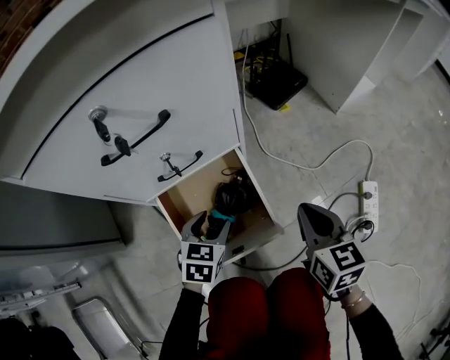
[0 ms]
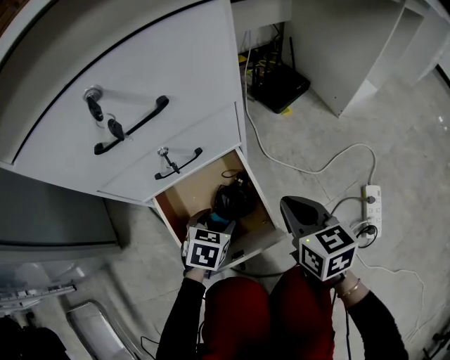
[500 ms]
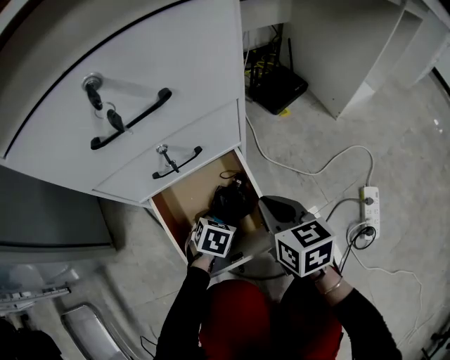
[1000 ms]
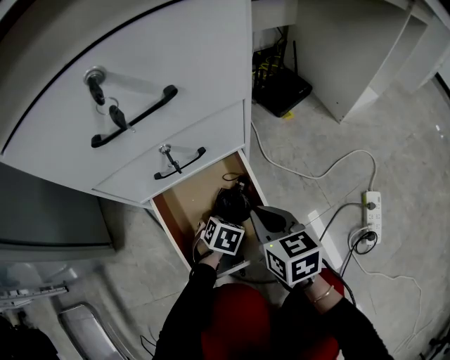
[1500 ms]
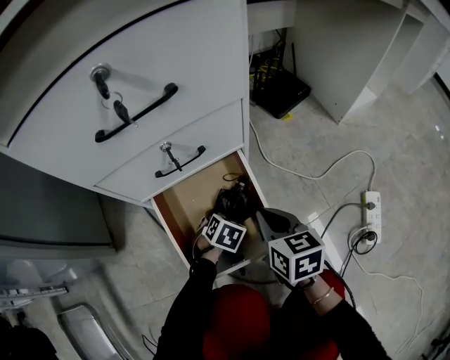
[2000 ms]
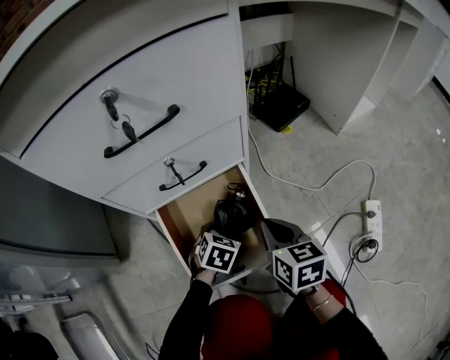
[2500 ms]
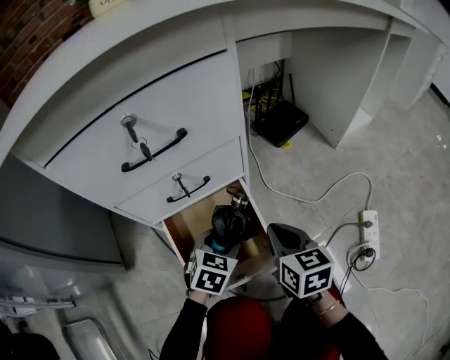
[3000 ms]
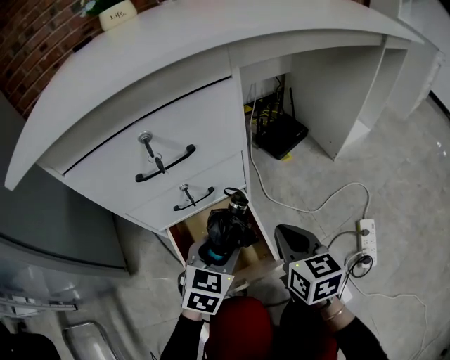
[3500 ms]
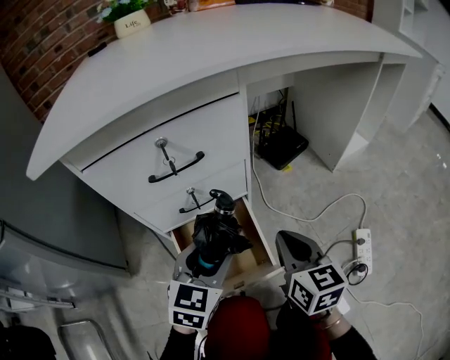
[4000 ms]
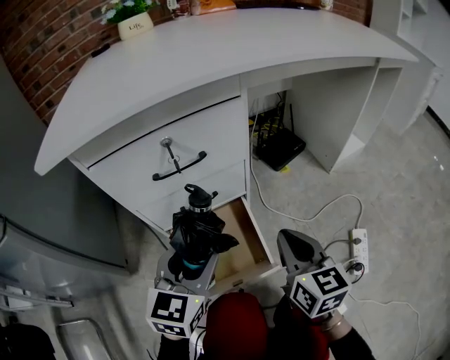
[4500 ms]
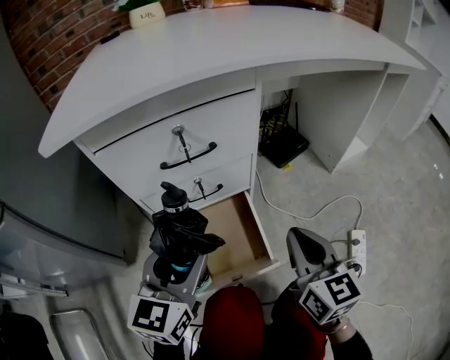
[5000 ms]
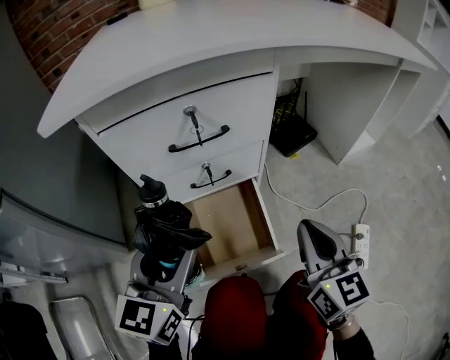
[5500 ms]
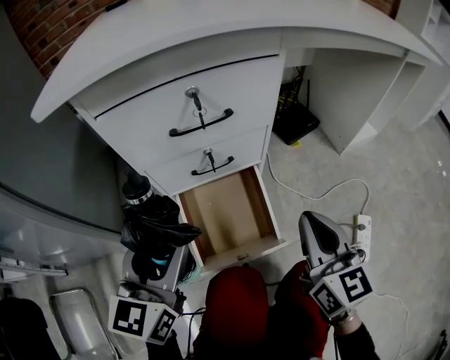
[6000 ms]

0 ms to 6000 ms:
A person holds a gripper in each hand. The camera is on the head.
0 ms to 2000 ms: The right gripper moves to the left and downward, some 15 cm. The left gripper shifts about 15 cm downward, and turns by approximately 20 degrees.
2000 ms to 4000 ms: The left gripper is displaced upward by about 30 cm, and points its fingers some 40 degrees further upward. The right gripper moves upward, some 15 cm.
4000 ms to 6000 ms: The right gripper heads upward, covering approximately 5 cm. Meanwhile the left gripper goes roughly 15 cm to the left, upward and backward, and rotates some 20 degrees.

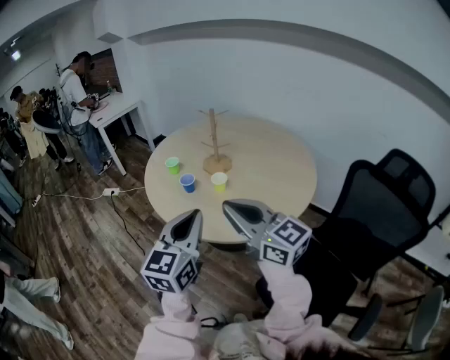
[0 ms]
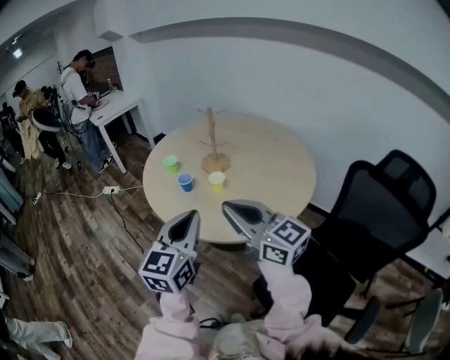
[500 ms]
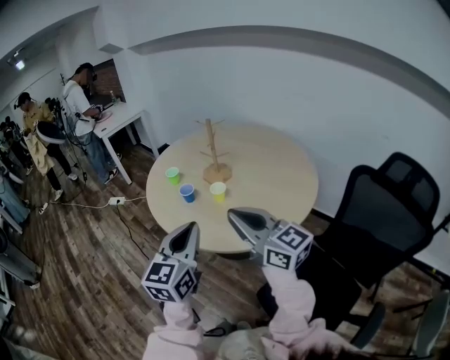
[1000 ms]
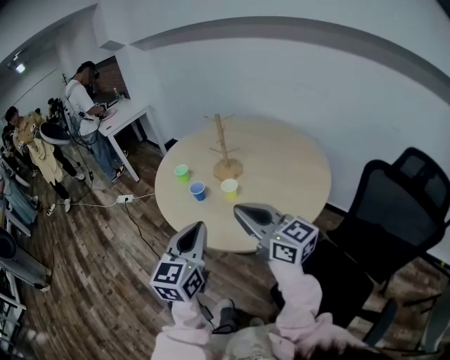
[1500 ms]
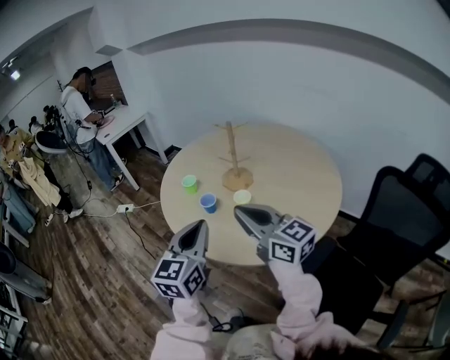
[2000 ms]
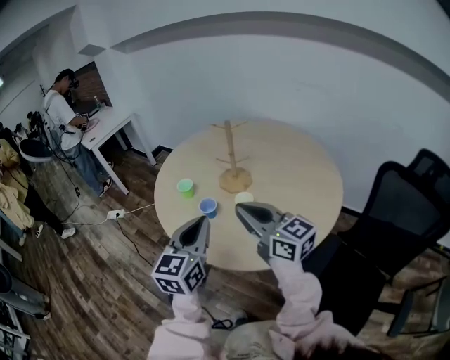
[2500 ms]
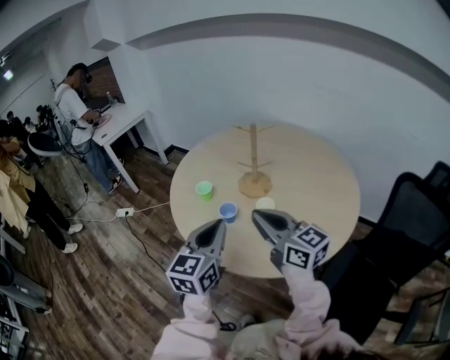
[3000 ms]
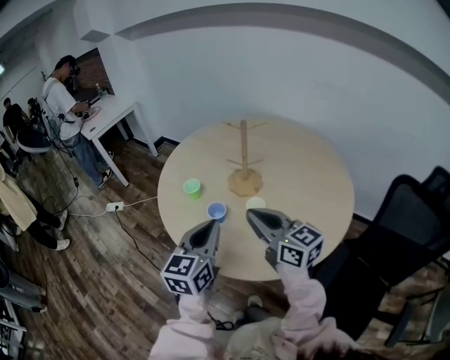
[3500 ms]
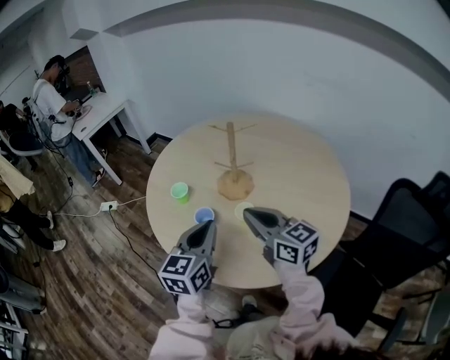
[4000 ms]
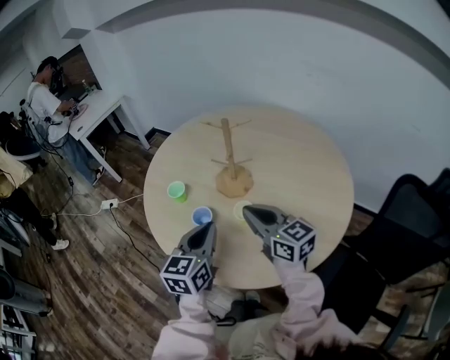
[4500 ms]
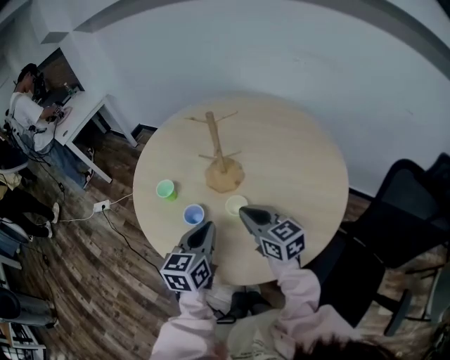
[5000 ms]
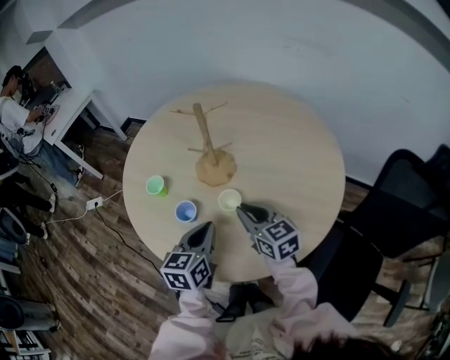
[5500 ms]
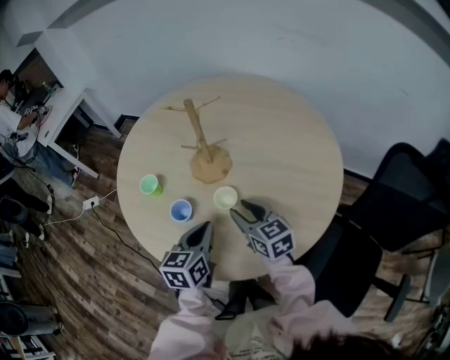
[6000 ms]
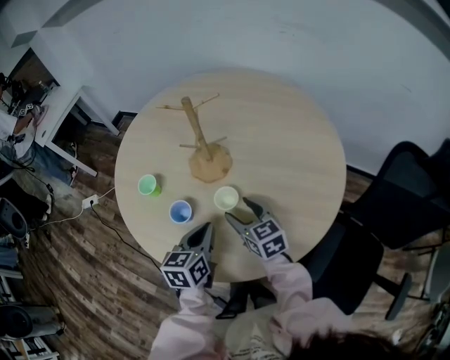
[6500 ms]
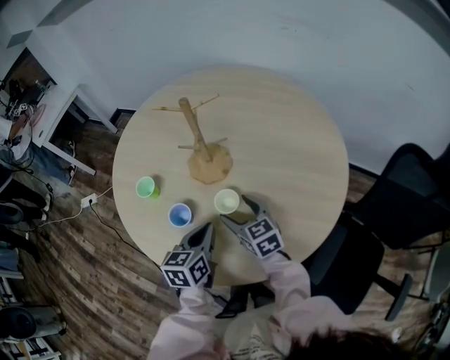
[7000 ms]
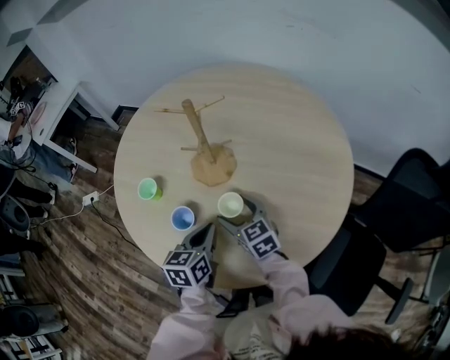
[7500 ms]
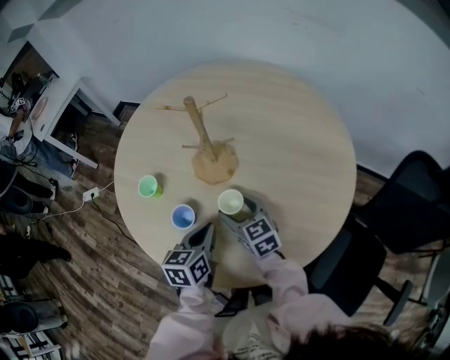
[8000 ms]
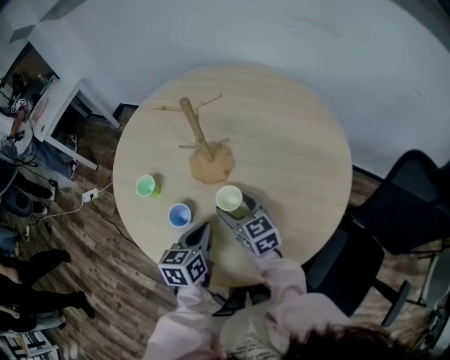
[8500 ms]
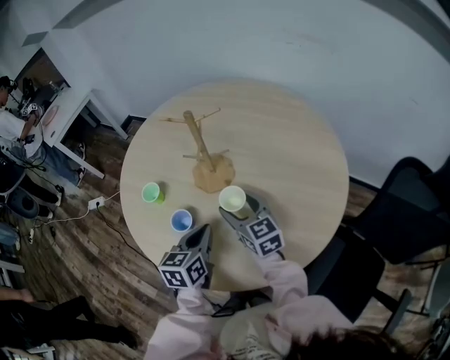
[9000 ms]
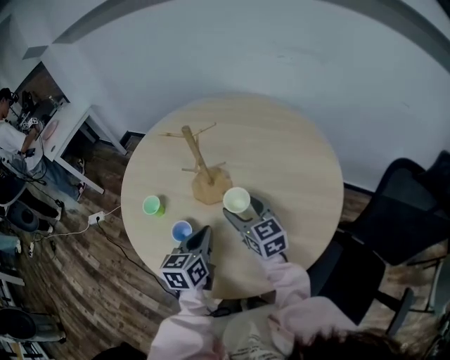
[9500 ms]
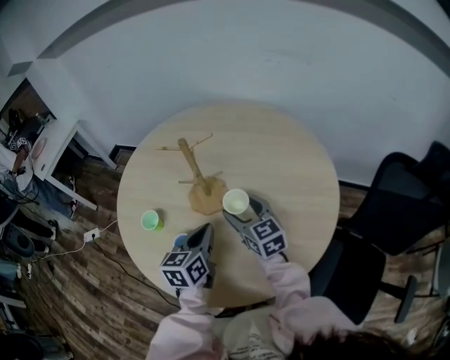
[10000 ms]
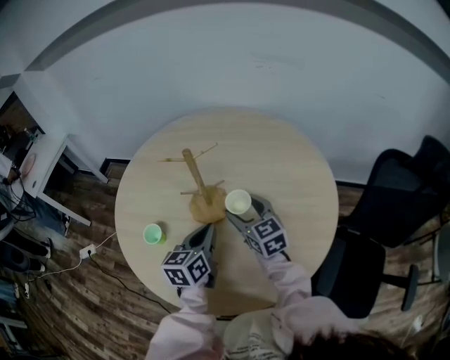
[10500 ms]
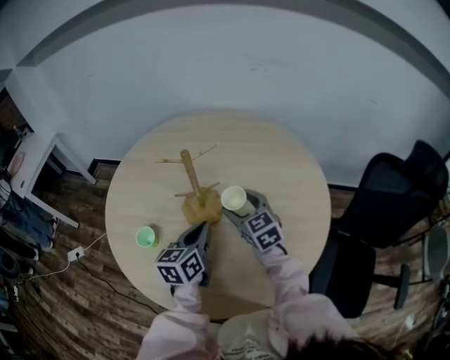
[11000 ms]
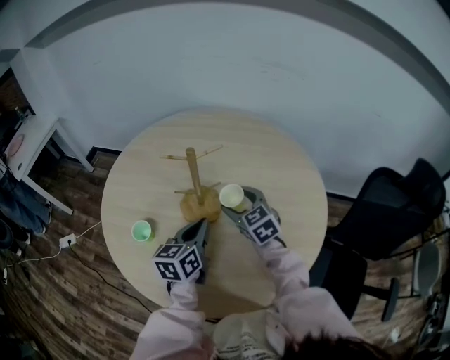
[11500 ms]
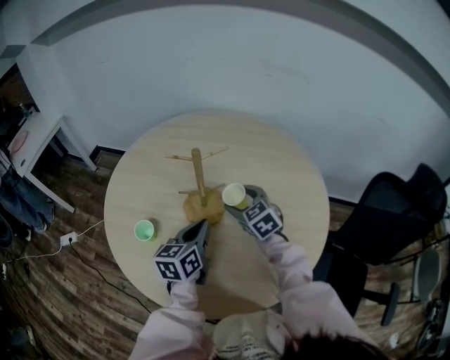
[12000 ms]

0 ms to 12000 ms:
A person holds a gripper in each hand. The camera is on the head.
0 ms to 2000 ms: The grippers both shift forward by some 10 cm.
2000 ms to 4000 ms: Both grippers move forward and downward, roughly 15 cm.
4000 ms to 6000 ms: Both grippers travel together downward, roughly 15 cm. The right gripper swivels about 20 degrees, and opens its fingers.
6000 ms to 8000 ms: The left gripper is displaced downward by approximately 5 cm. The right gripper moves about 10 cm.
8000 ms to 10000 ms: The left gripper goes roughly 10 cm upward and forward, while the right gripper travels upward, to the right and forward by roughly 10 cm.
10000 ms to 12000 ms: Both grippers travel together forward, approximately 5 cm. The right gripper turns by about 20 degrees.

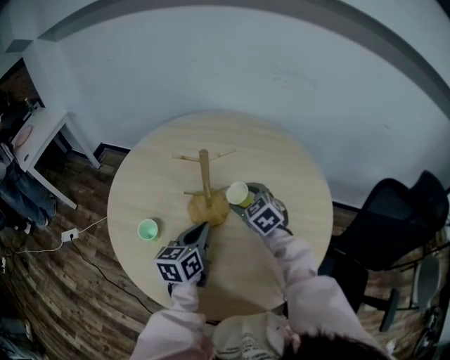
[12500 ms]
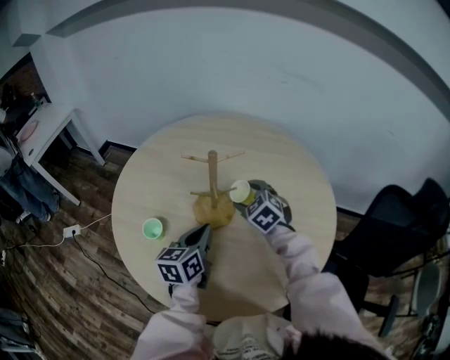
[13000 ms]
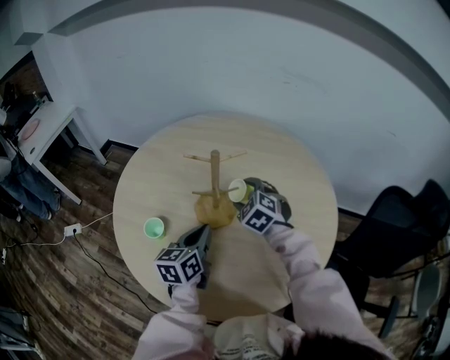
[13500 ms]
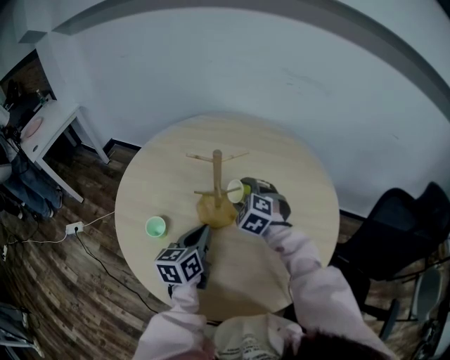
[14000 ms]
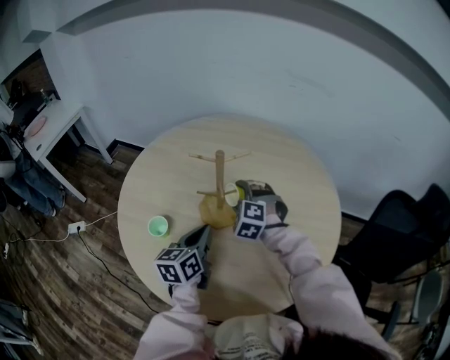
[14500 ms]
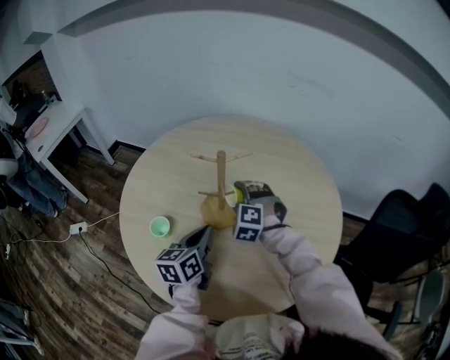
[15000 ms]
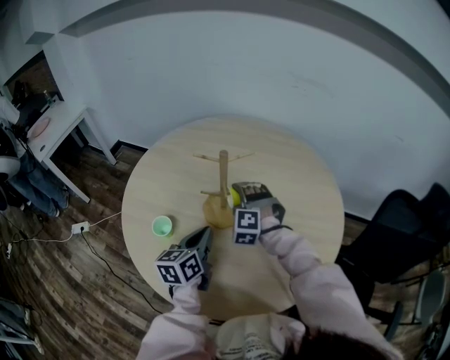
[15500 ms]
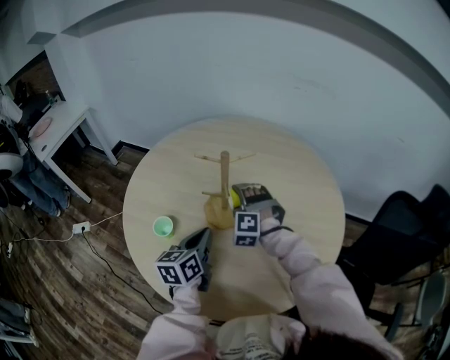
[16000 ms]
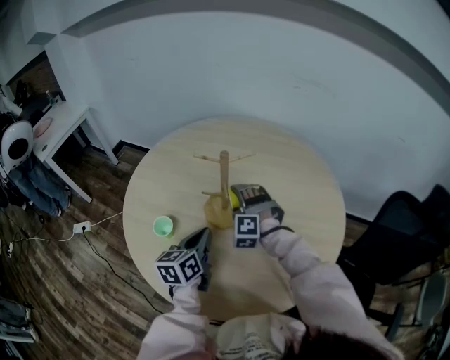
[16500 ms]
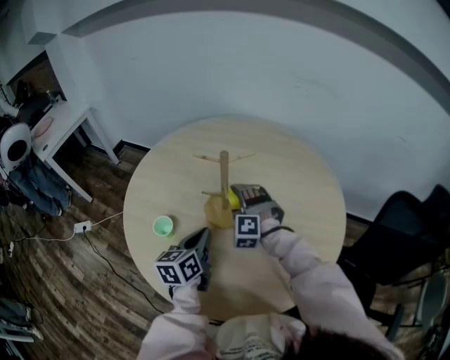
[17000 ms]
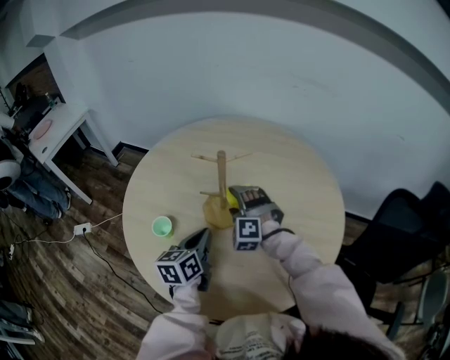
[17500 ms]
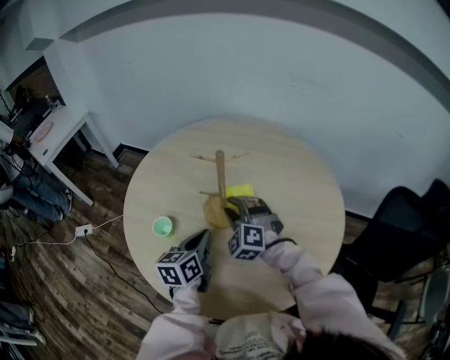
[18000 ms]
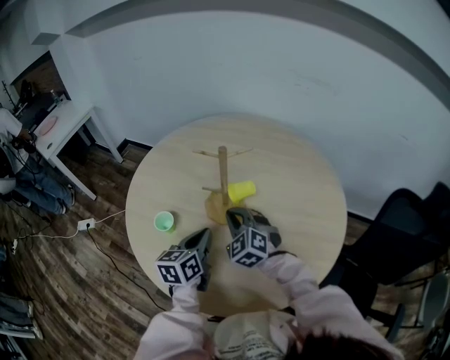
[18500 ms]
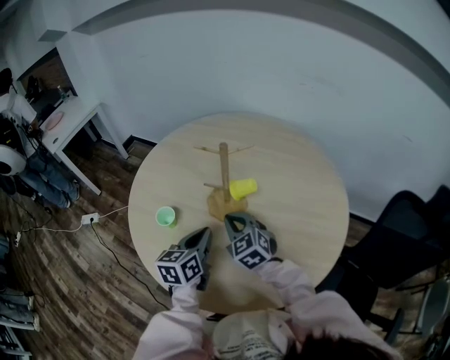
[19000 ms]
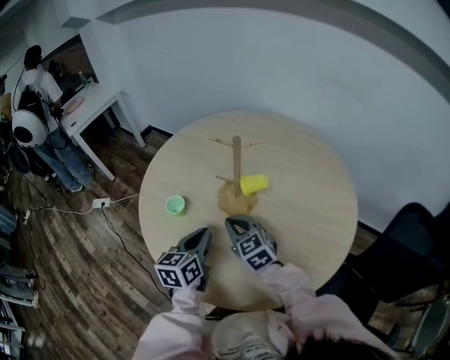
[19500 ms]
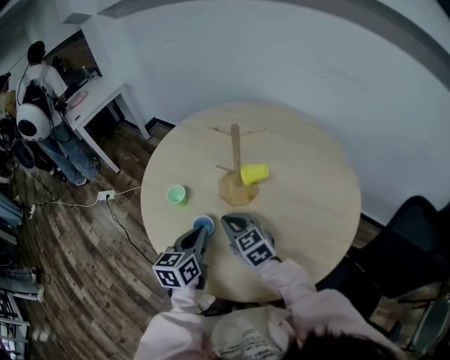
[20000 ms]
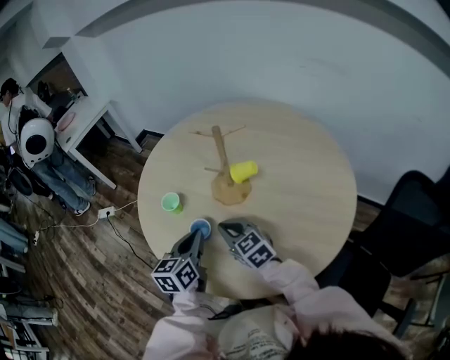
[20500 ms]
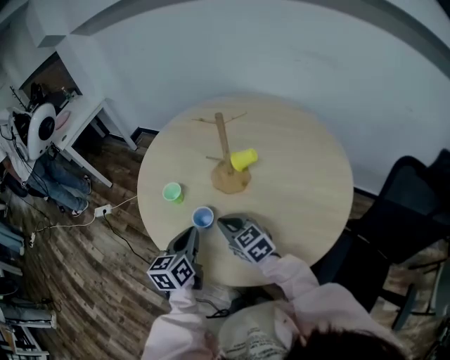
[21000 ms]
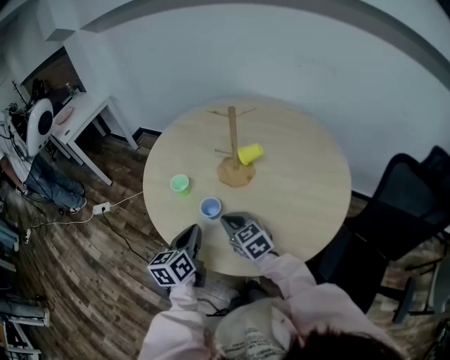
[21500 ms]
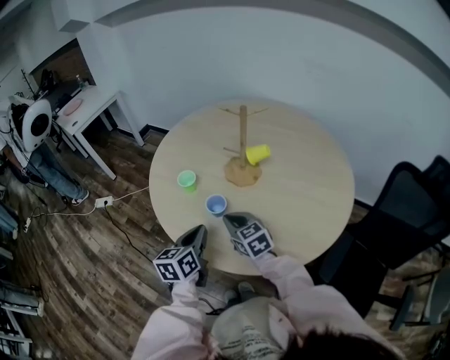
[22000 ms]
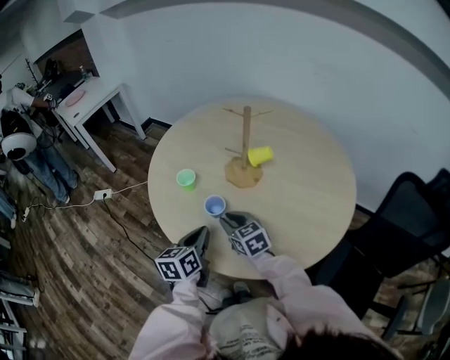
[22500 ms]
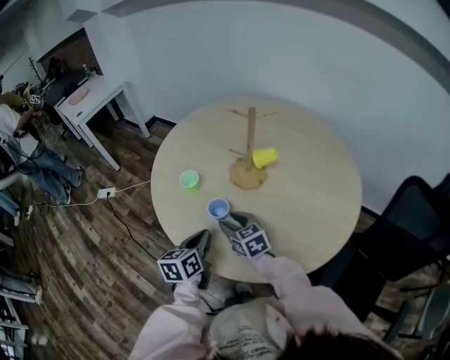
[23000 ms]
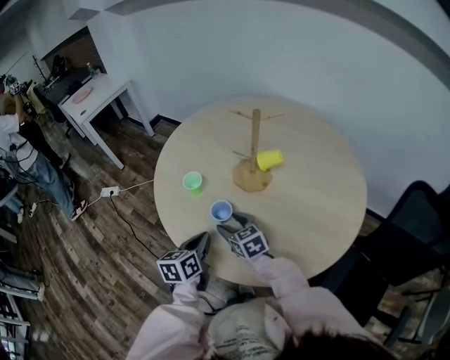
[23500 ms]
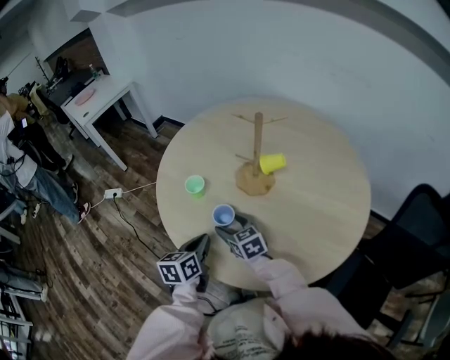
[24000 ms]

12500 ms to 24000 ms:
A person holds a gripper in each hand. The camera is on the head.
12500 ms to 14500 ms: The right gripper changes its angle by approximately 40 degrees.
14500 ms to 16500 ms: There are only small adjustments of the grippers.
16500 ms to 18500 ms: The right gripper travels backward by approximately 10 cm, changes its angle by roughly 40 degrees, and closes.
18500 ms to 20000 ms: Both grippers travel together backward, some 5 cm. The right gripper changes its angle by about 30 degrees.
20000 ms to 22000 ms: The left gripper goes some 10 cm backward and to the left. Meanwhile the right gripper goes roughly 5 cm backward.
22000 ms to 24000 ms: The left gripper shifts some 5 cm downward. Meanwhile the right gripper travels downward and forward by some 10 cm, and opens.
